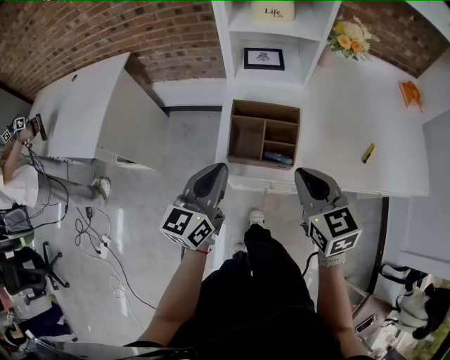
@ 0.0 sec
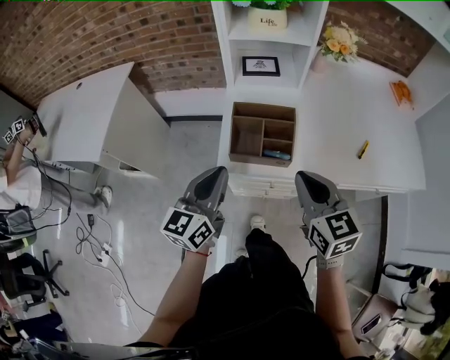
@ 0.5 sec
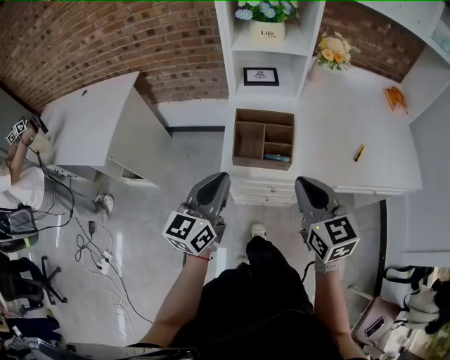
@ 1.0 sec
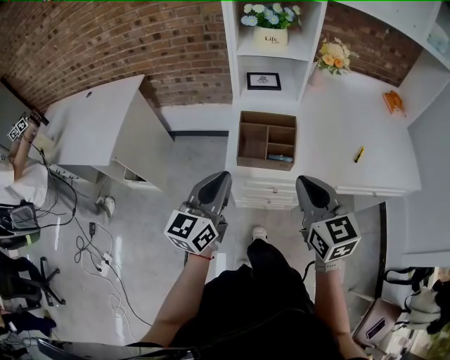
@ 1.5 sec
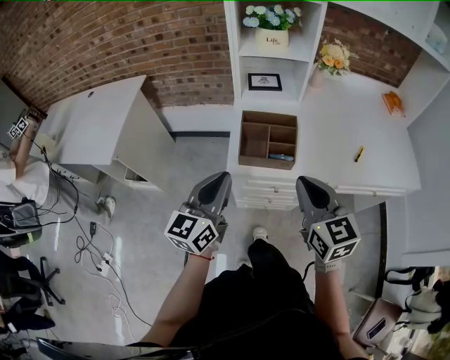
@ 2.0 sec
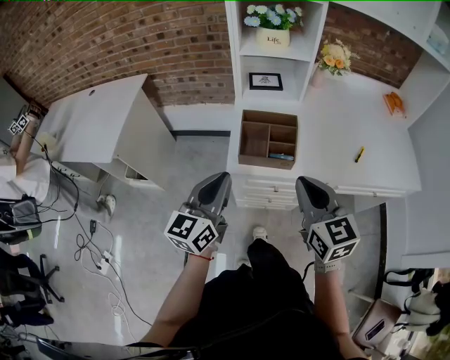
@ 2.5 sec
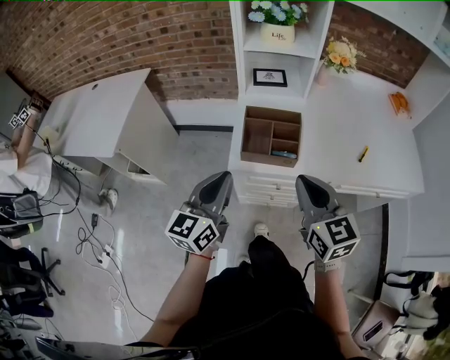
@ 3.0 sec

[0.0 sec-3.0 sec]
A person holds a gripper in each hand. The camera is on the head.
0.0 sec to 1.5 sec: Both grippers move backward and upward, roughly 10 cm.
1.5 sec to 3.0 sec: Both grippers stay put.

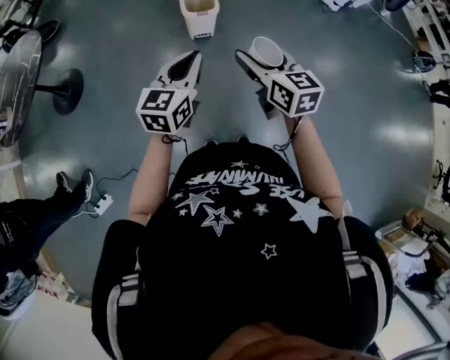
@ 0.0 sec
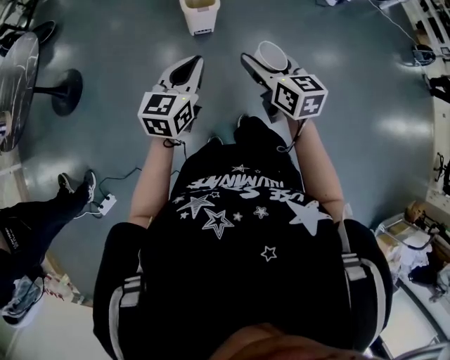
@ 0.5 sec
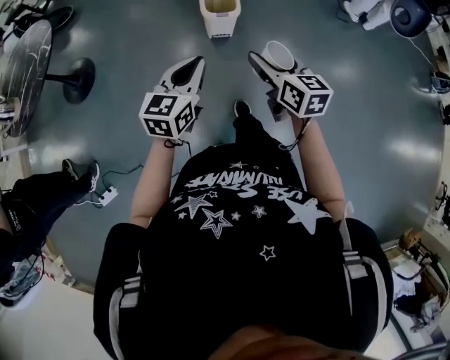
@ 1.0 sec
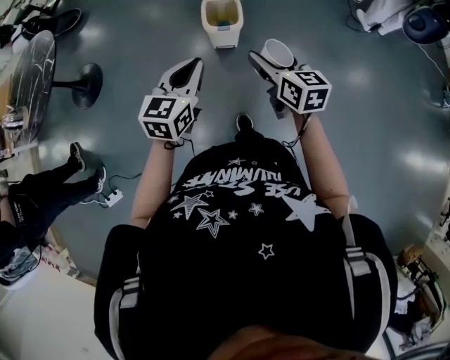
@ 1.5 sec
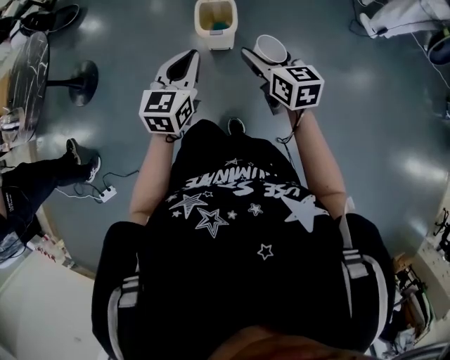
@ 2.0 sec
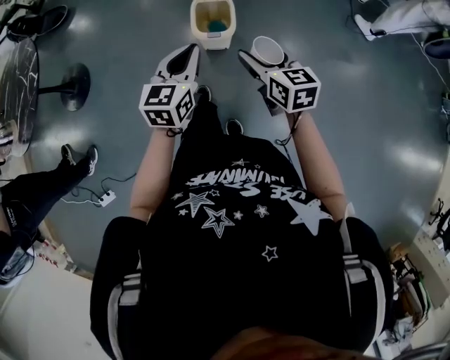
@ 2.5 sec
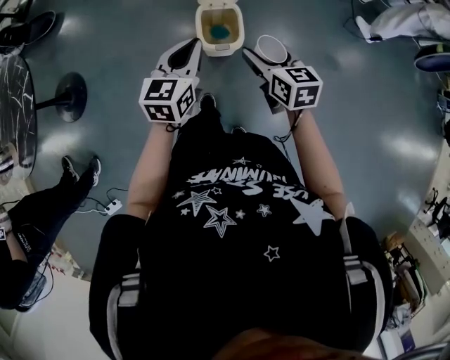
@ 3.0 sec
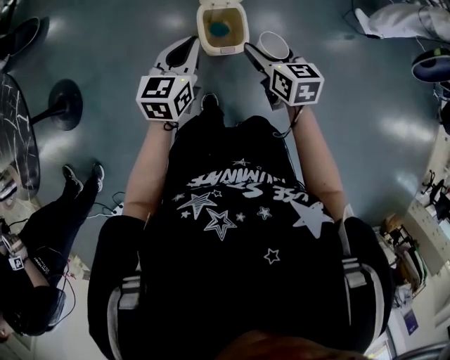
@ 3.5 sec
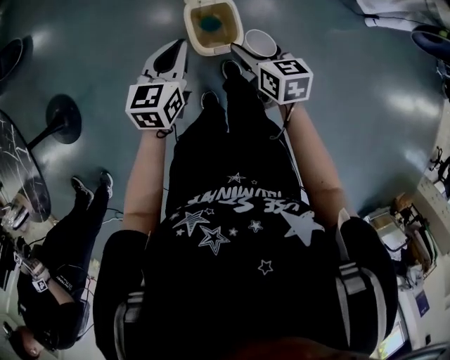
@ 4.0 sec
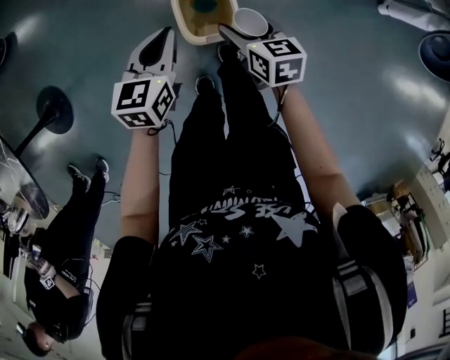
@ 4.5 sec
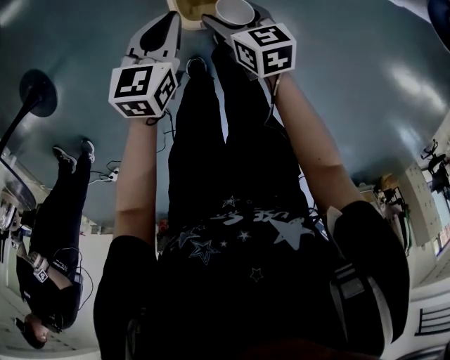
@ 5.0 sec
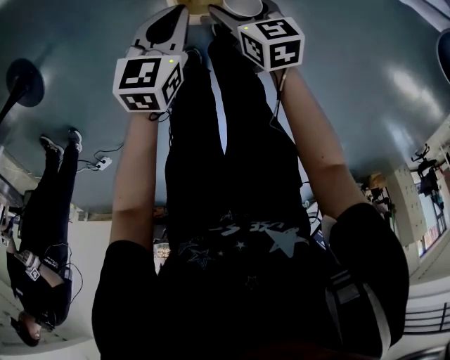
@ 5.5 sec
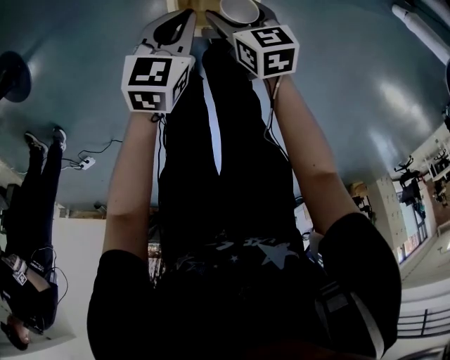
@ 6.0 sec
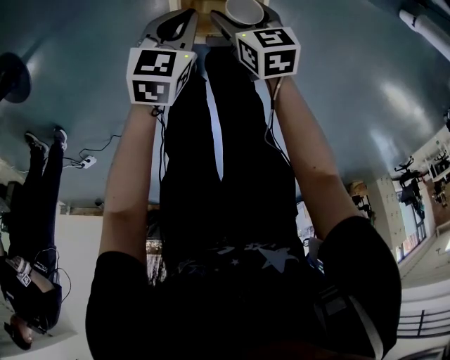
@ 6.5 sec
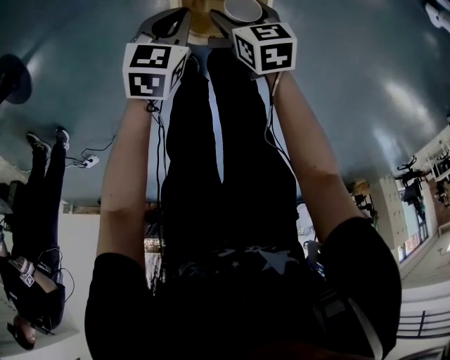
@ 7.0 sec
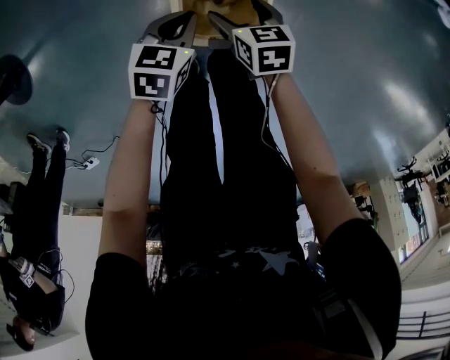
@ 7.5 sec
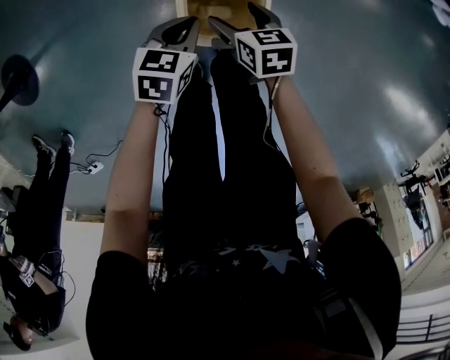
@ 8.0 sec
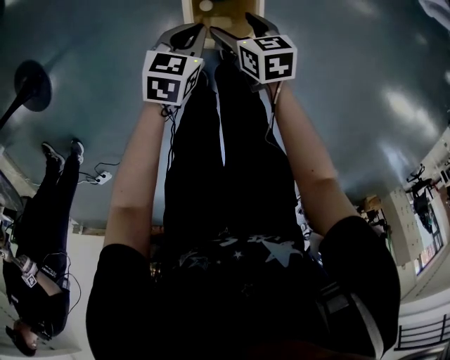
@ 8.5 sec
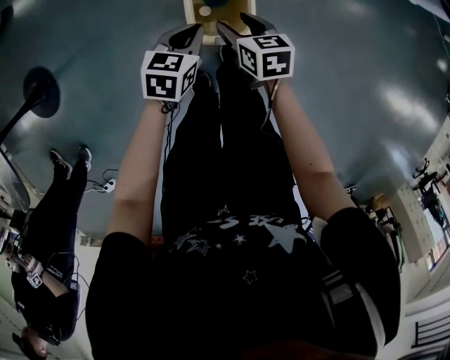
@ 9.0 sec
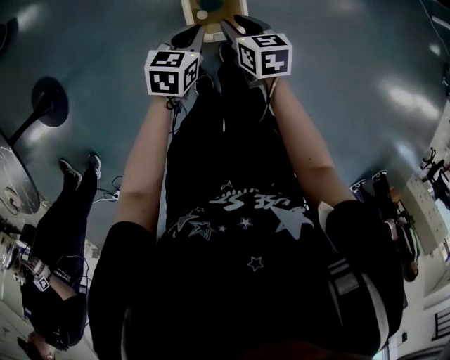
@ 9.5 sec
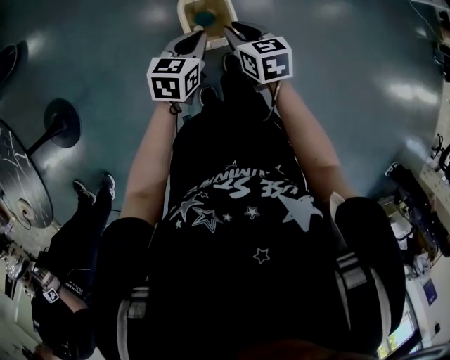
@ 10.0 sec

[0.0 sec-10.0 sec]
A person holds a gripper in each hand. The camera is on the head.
0.0 sec to 2.0 sec: Both grippers move forward, roughly 25 cm.
2.0 sec to 4.0 sec: The left gripper travels forward by about 30 cm; the right gripper shifts approximately 30 cm forward and downward, and rotates about 20 degrees.
4.0 sec to 6.0 sec: Both grippers move downward, approximately 25 cm. The right gripper turns by some 20 degrees.
8.0 sec to 10.0 sec: The two grippers go some 25 cm upward. The right gripper closes up.

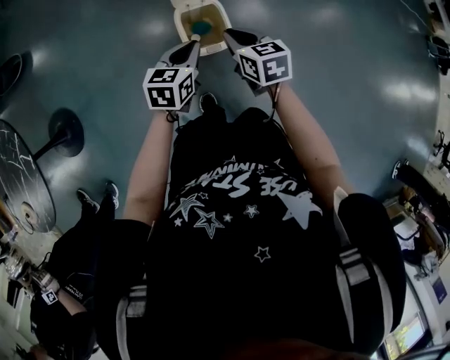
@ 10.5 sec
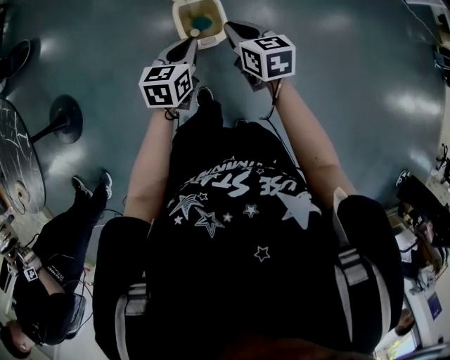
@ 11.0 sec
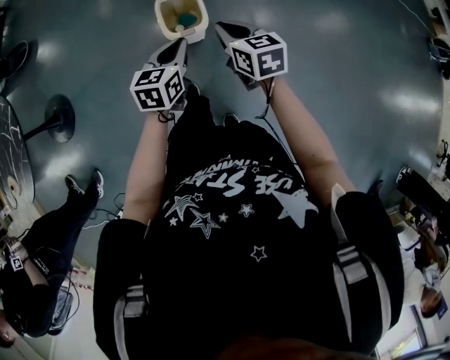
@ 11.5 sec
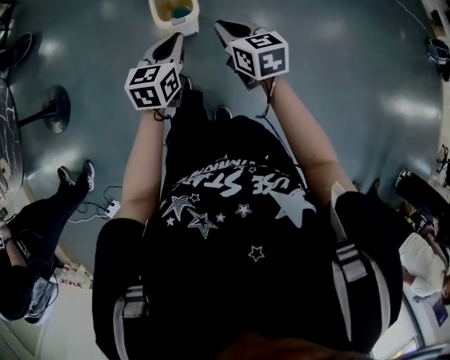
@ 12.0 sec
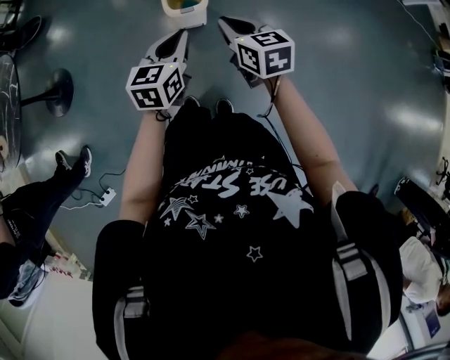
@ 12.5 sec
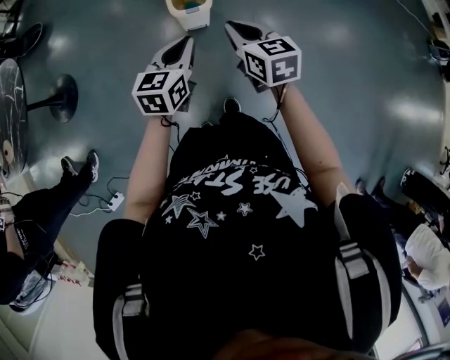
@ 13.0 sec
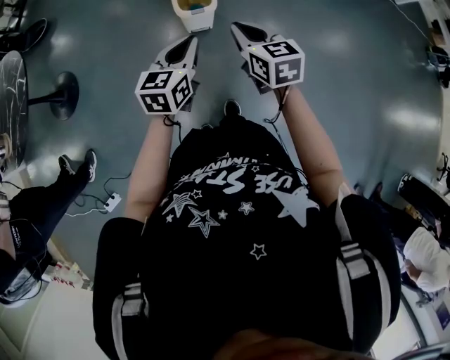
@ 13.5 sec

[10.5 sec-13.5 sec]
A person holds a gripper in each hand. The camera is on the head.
10.5 sec to 12.0 sec: The grippers both shift backward and to the right by some 25 cm.
12.0 sec to 13.5 sec: The grippers both shift backward and to the left by some 10 cm.

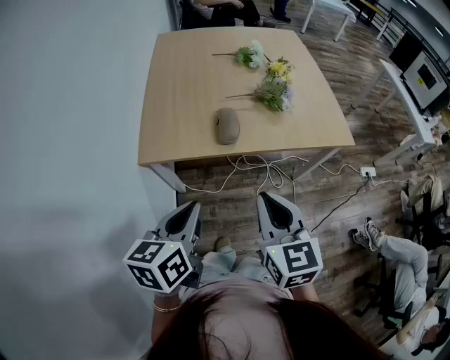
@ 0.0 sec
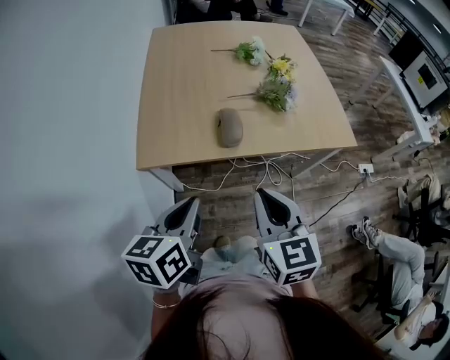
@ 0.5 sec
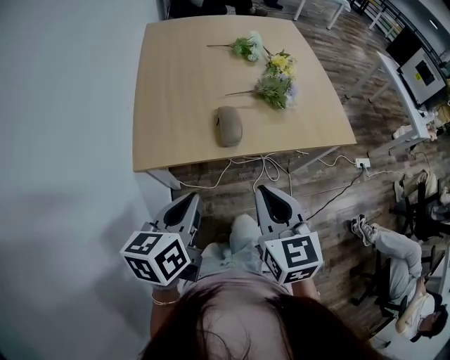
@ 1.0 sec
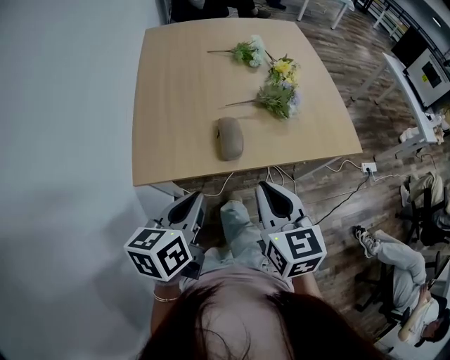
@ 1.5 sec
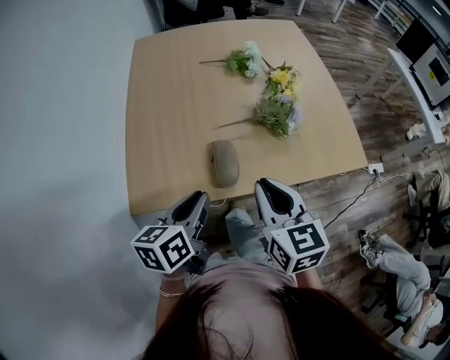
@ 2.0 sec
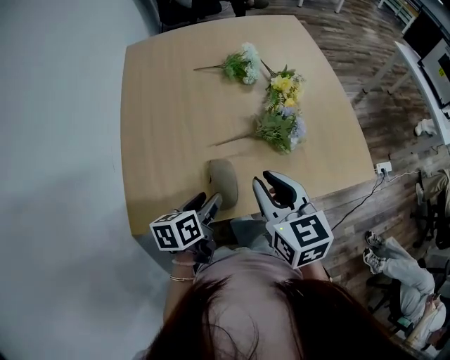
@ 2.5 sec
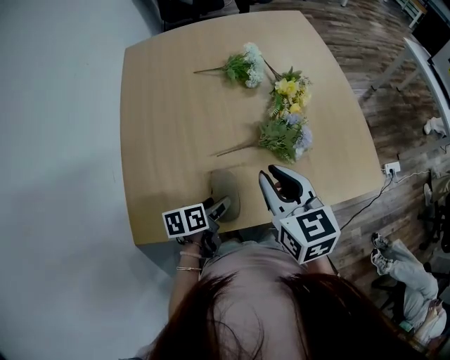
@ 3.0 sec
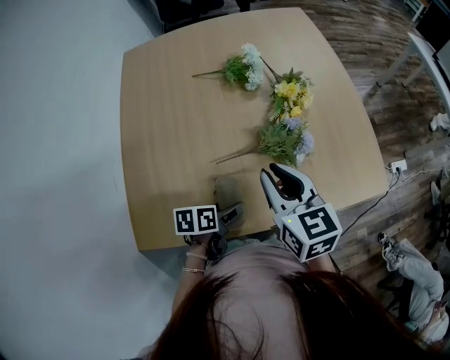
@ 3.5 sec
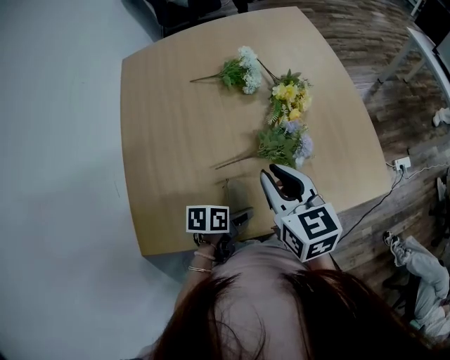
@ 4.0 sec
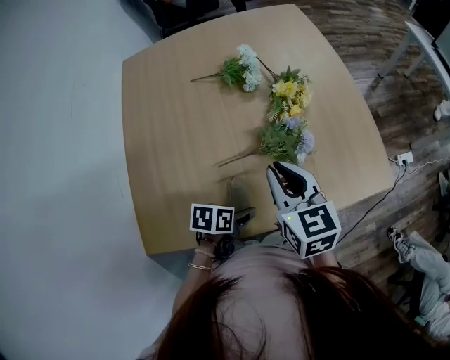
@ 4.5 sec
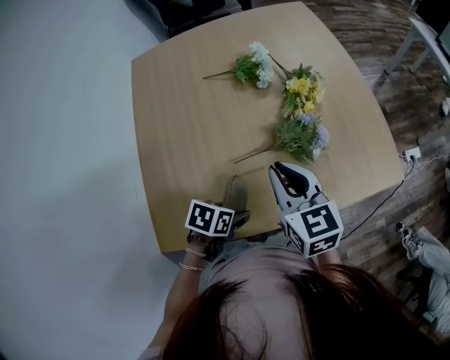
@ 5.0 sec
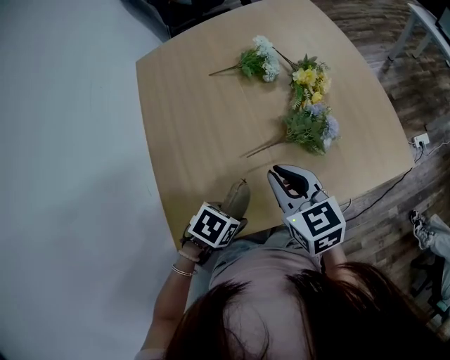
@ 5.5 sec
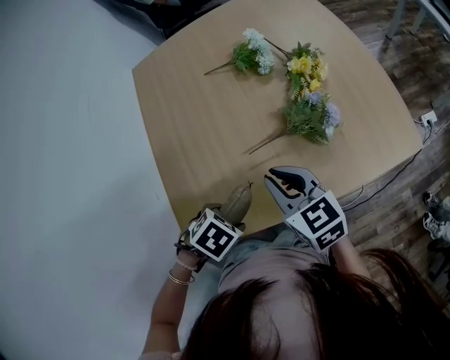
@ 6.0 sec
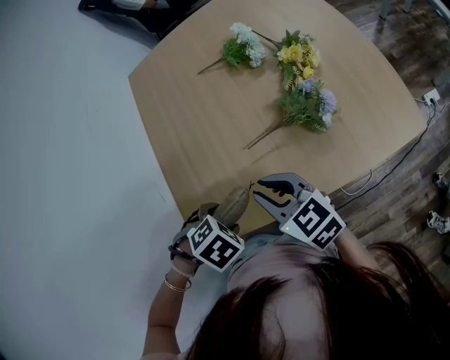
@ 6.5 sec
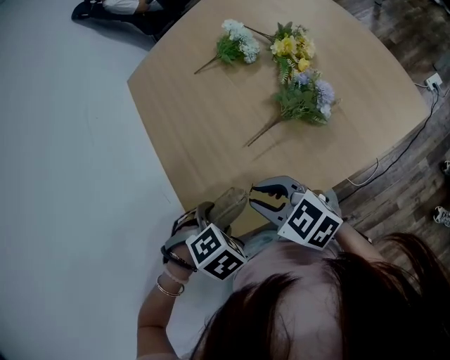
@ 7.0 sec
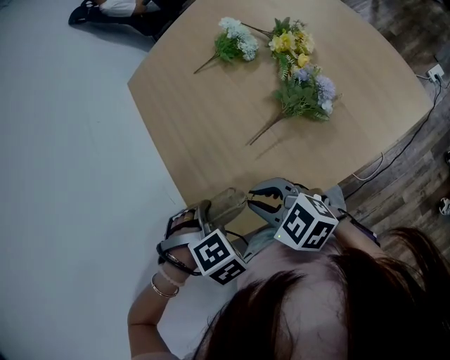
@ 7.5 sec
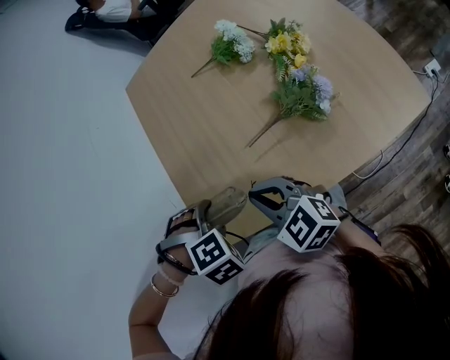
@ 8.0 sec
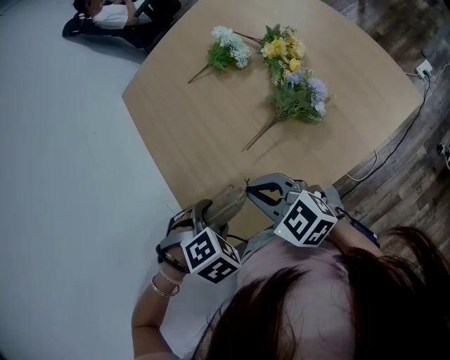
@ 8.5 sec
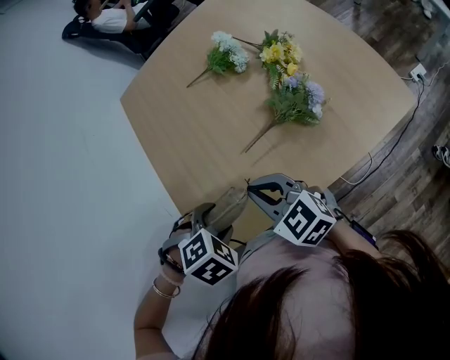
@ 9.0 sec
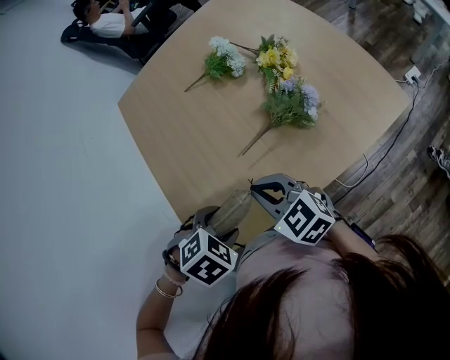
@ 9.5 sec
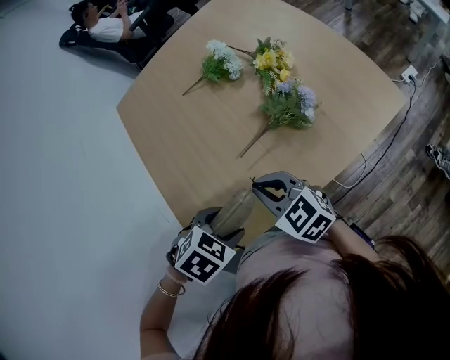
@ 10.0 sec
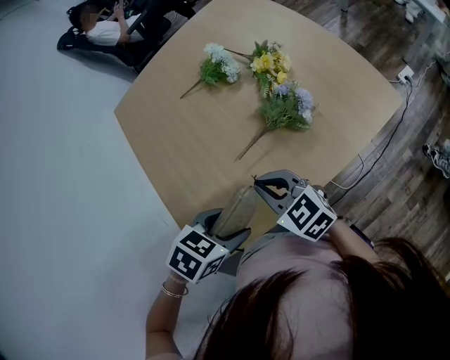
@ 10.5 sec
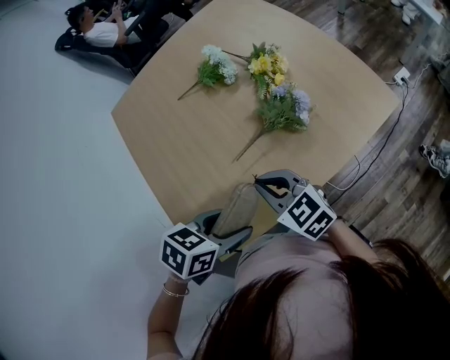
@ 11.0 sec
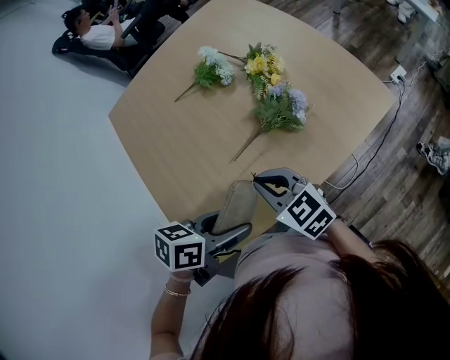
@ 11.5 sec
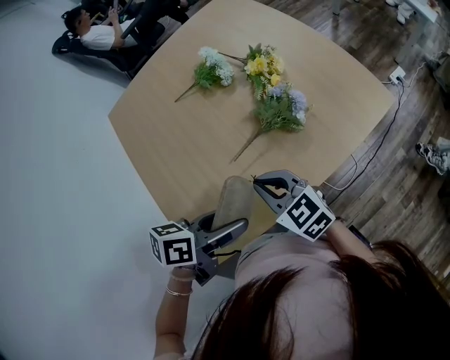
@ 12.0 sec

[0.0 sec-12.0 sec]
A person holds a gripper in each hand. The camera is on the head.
0.0 sec to 2.0 sec: The right gripper changes place by roughly 25 cm.
2.0 sec to 4.0 sec: The right gripper changes place by about 20 cm.
4.0 sec to 6.0 sec: The right gripper moves about 10 cm.
6.0 sec to 8.0 sec: The right gripper shifts by roughly 10 cm, and turns by about 20 degrees.
